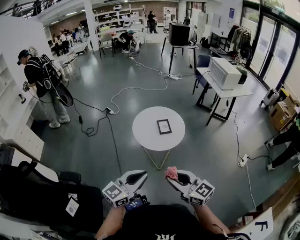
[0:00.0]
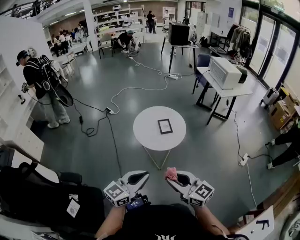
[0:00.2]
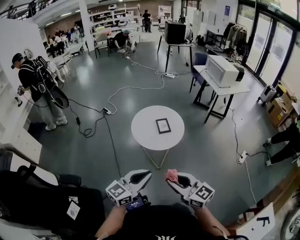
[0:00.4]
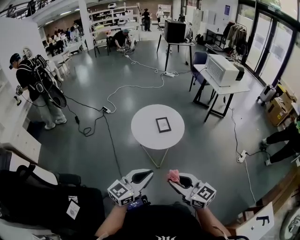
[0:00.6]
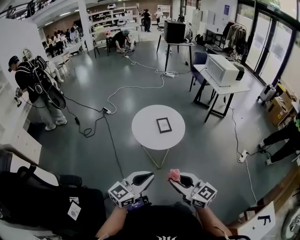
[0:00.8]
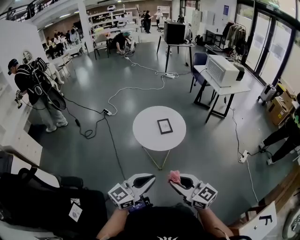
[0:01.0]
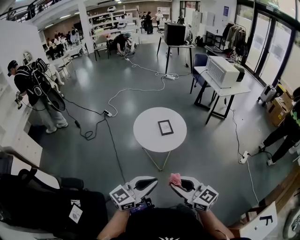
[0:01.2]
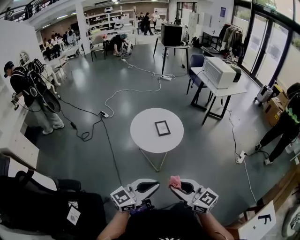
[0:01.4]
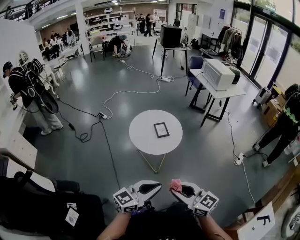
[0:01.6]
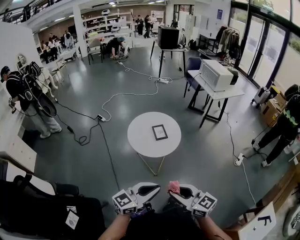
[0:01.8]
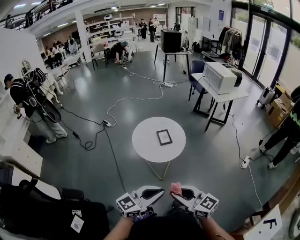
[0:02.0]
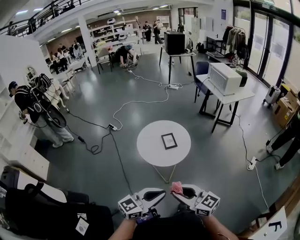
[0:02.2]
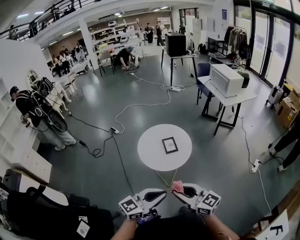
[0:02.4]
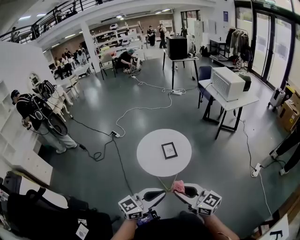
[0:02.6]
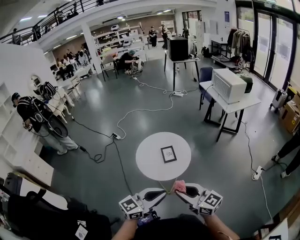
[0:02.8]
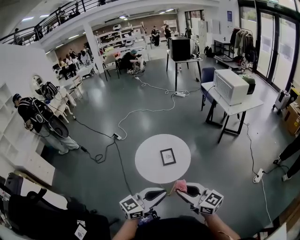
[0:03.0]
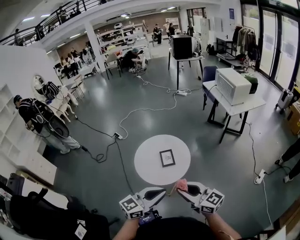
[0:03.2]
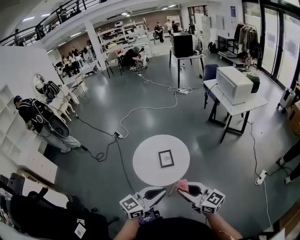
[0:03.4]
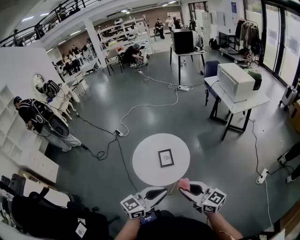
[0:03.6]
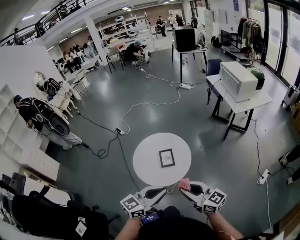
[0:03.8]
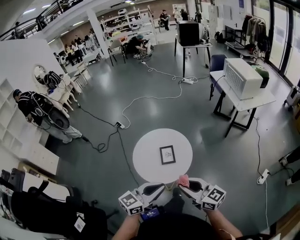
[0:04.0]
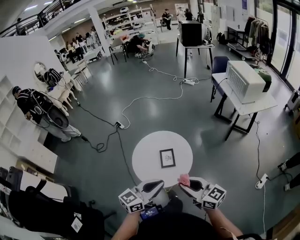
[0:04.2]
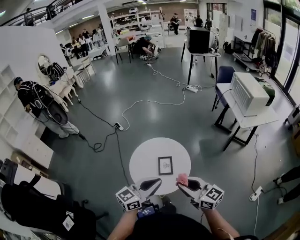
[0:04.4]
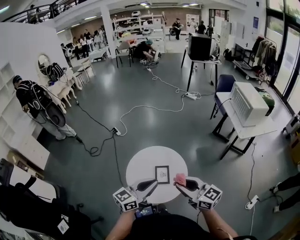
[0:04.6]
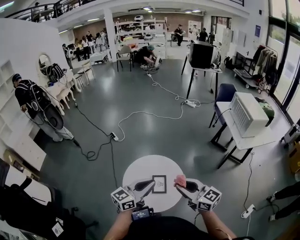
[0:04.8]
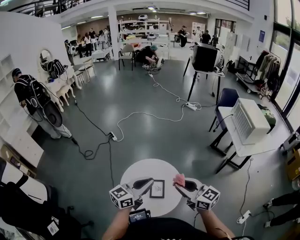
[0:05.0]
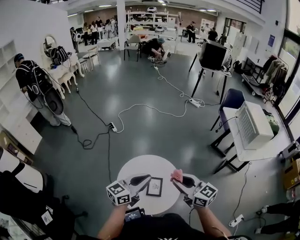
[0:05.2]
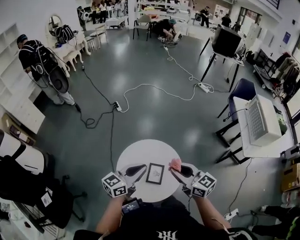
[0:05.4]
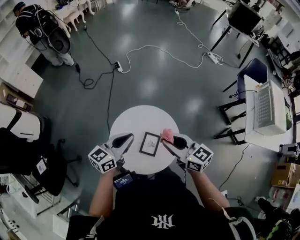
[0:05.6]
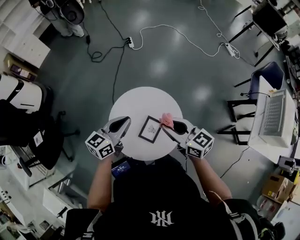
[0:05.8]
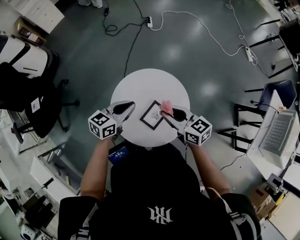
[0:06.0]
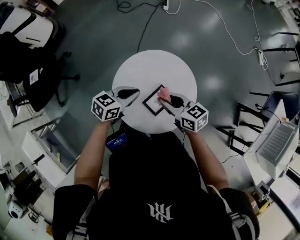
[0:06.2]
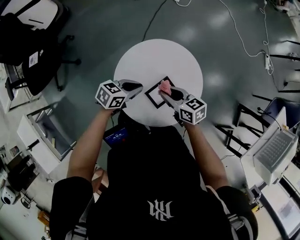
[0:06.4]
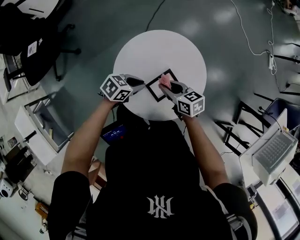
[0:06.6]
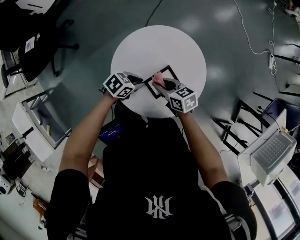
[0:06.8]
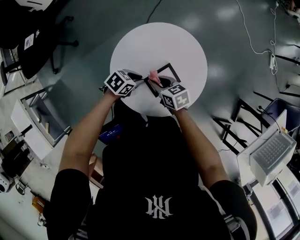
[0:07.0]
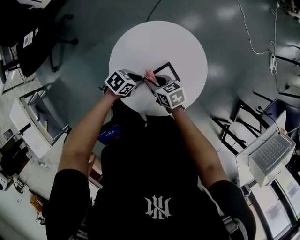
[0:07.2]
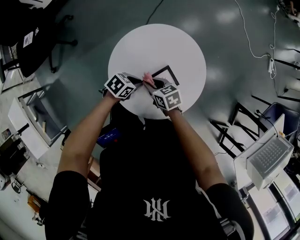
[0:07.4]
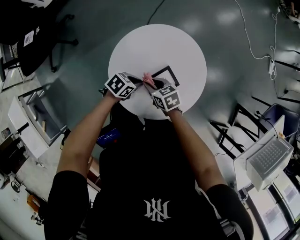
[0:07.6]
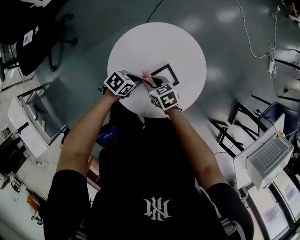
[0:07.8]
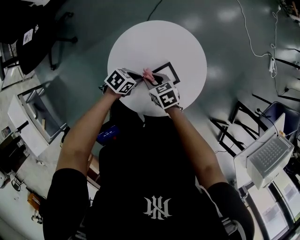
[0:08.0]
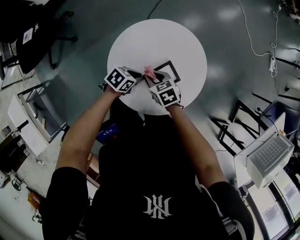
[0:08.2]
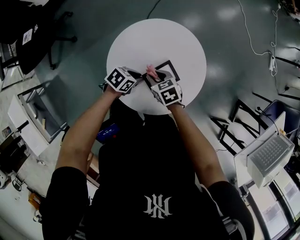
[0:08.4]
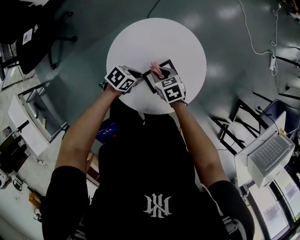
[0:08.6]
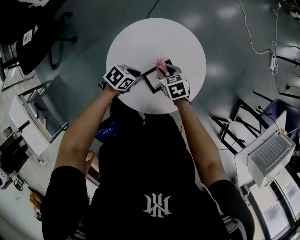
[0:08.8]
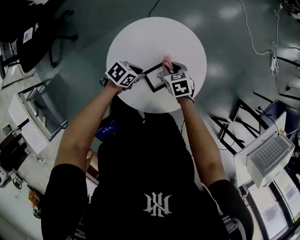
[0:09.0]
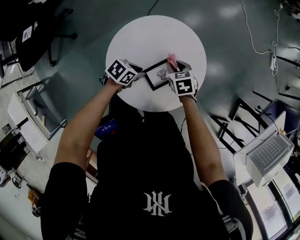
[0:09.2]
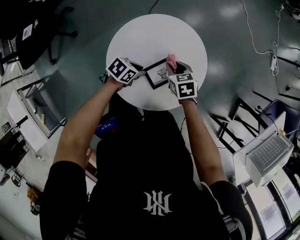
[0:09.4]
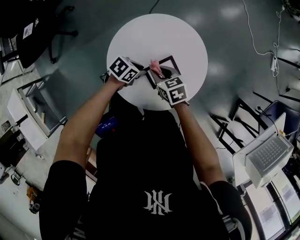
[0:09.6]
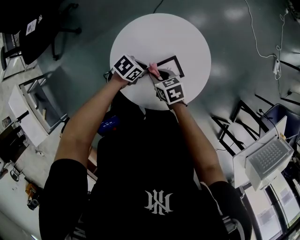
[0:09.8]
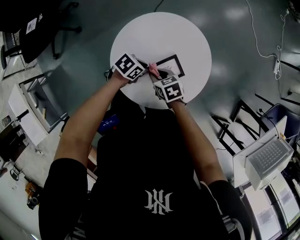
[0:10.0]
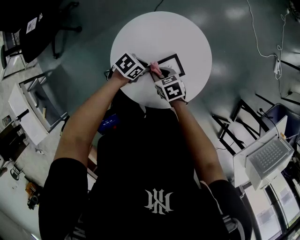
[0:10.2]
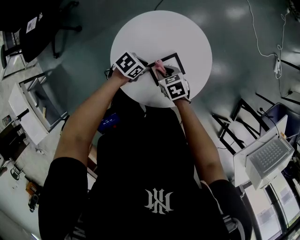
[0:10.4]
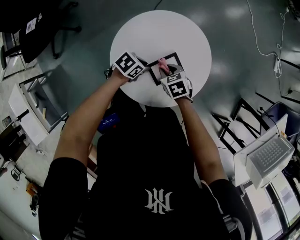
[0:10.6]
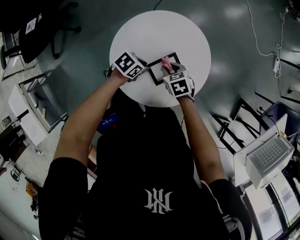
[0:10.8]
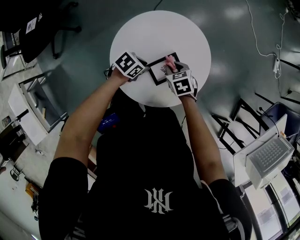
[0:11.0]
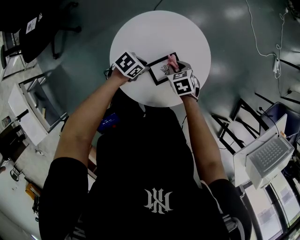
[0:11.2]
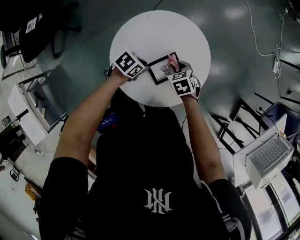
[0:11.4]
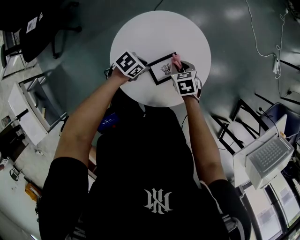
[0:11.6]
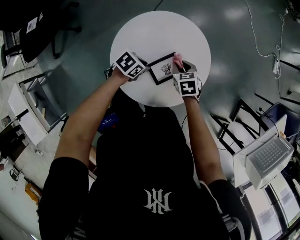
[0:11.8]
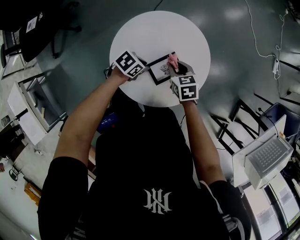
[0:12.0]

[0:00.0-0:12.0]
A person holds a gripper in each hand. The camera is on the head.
0.0 to 1.6 s: The grippers move only a little.
1.6 to 3.0 s: The two grippers go approximately 25 cm forward and to the right.
3.0 to 4.4 s: Both grippers move forward, some 25 cm.
4.4 to 6.0 s: The left gripper ends up some 35 cm from where it was, and changes its angle by approximately 50 degrees, while the right gripper changes place by roughly 40 cm, and changes its angle by about 50 degrees.
6.0 to 7.6 s: The grippers both shift downward by about 25 cm. The left gripper turns by approximately 30 degrees; the right gripper turns by approximately 30 degrees.
7.6 to 9.0 s: The right gripper shifts by roughly 10 cm, and swivels some 20 degrees.
9.0 to 10.4 s: The right gripper changes place by about 10 cm.
10.4 to 12.0 s: The right gripper moves about 5 cm.

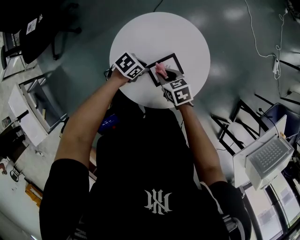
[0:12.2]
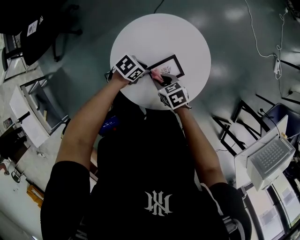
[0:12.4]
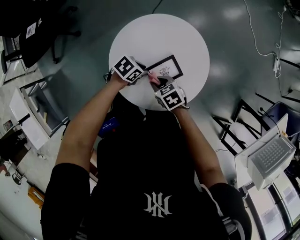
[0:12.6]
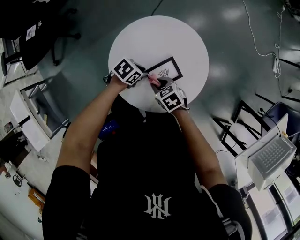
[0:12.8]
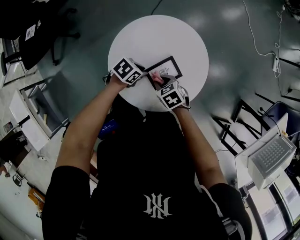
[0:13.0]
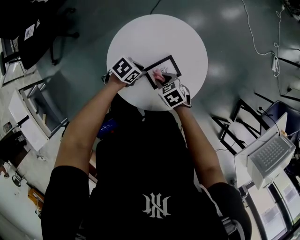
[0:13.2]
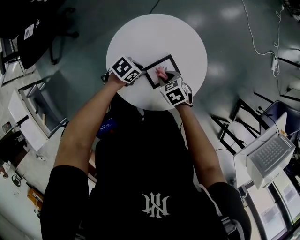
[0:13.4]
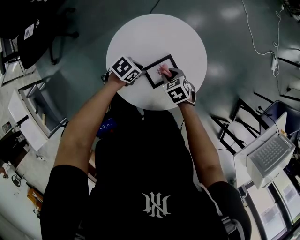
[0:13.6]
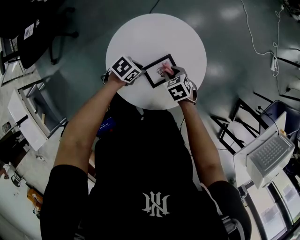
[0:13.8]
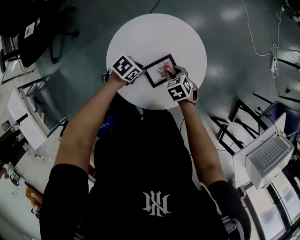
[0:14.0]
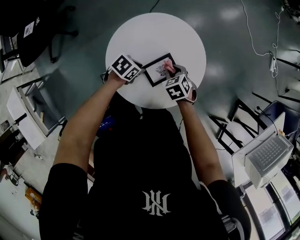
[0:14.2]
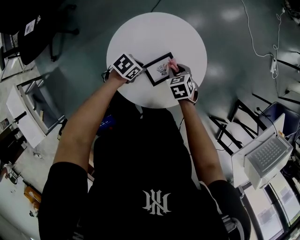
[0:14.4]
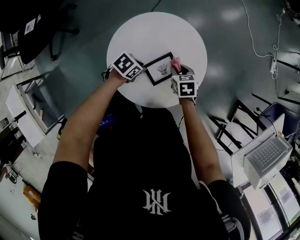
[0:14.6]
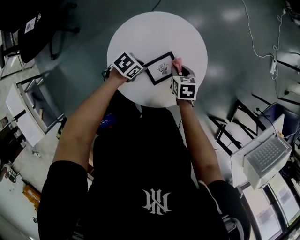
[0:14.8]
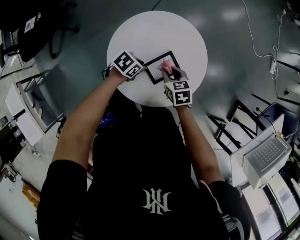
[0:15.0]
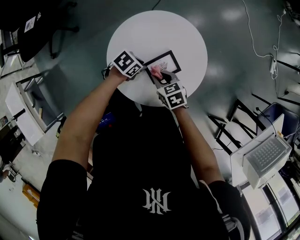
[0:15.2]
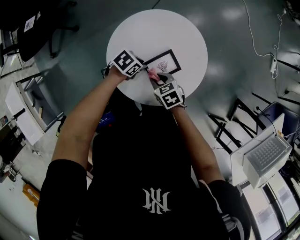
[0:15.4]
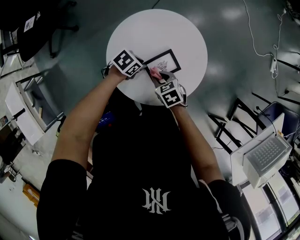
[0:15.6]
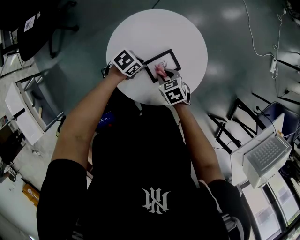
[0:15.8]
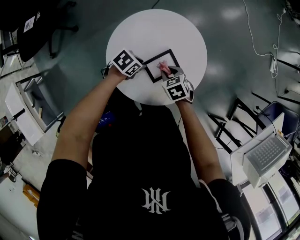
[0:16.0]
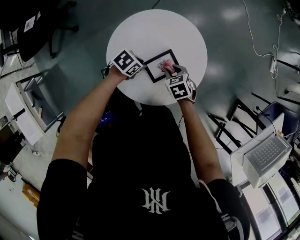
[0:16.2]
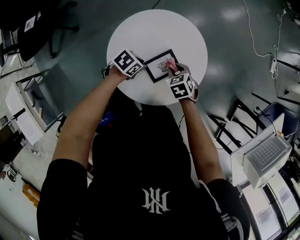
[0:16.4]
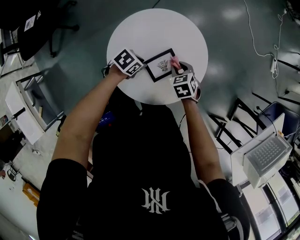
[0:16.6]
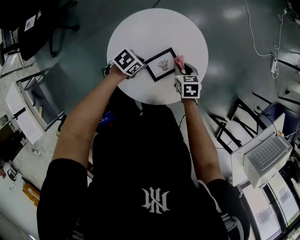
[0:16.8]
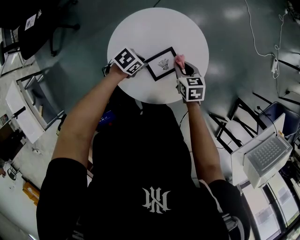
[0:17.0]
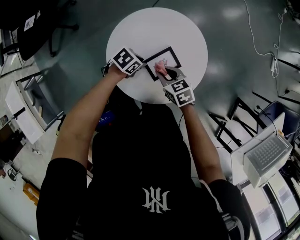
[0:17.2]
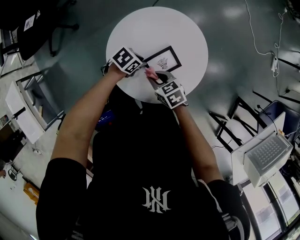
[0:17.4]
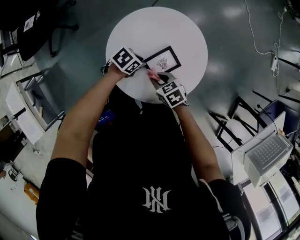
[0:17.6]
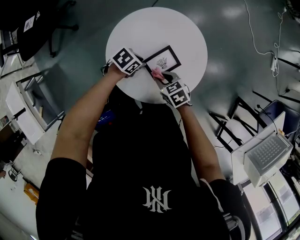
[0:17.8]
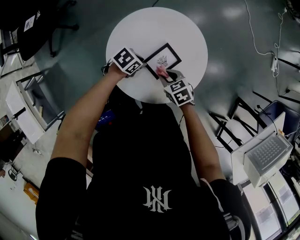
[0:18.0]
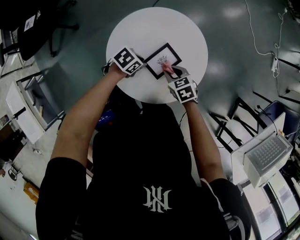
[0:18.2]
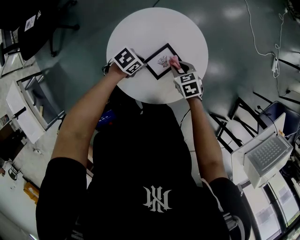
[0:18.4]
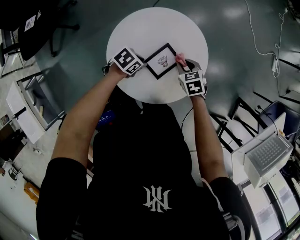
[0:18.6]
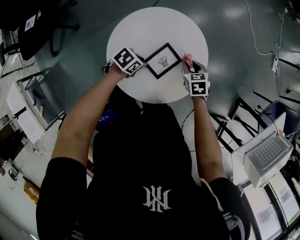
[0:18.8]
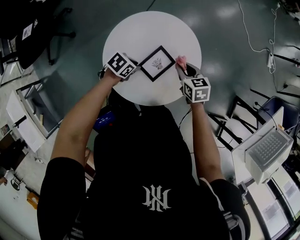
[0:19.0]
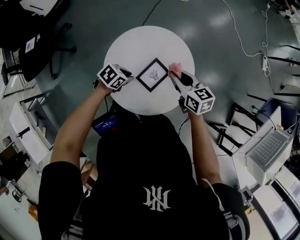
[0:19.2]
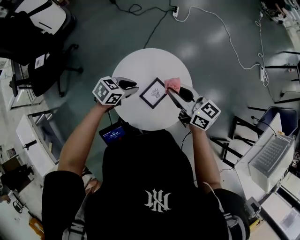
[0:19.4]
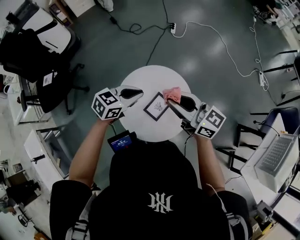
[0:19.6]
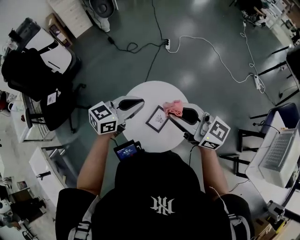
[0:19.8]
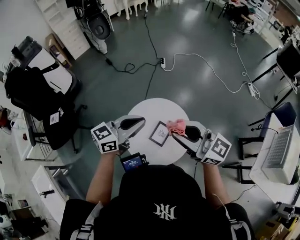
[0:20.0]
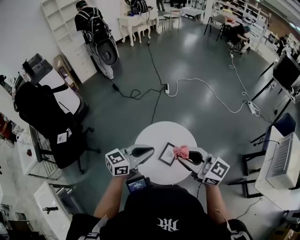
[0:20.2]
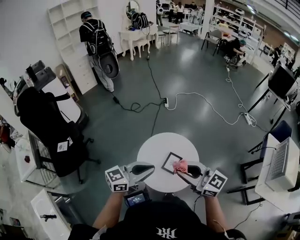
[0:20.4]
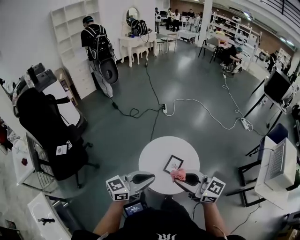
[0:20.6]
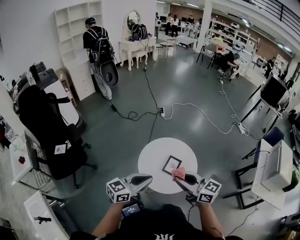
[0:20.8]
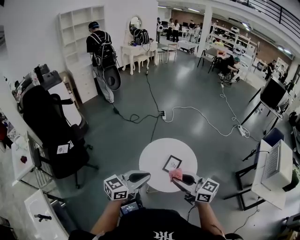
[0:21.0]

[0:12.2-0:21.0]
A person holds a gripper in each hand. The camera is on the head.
12.2 to 13.6 s: The right gripper changes place by approximately 5 cm.
13.6 to 15.2 s: The right gripper moves about 5 cm.
15.2 to 16.6 s: The right gripper moves roughly 10 cm, and rotates some 20 degrees.
16.6 to 18.0 s: The right gripper rotates about 20 degrees.
18.0 to 19.6 s: The grippers both shift upward by roughly 35 cm. The left gripper rotates some 40 degrees, while the right gripper angles its fingers upward, by some 60 degrees.
19.6 to 21.0 s: The left gripper heads backward, upward and to the left, covering approximately 35 cm, and swivels roughly 30 degrees; the right gripper moves backward, some 25 cm.

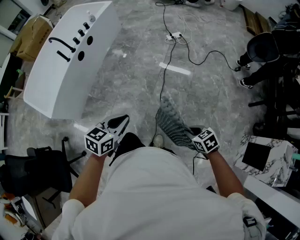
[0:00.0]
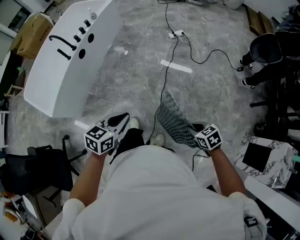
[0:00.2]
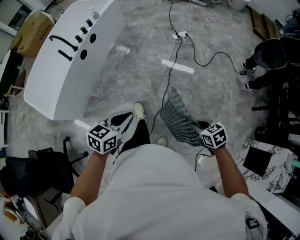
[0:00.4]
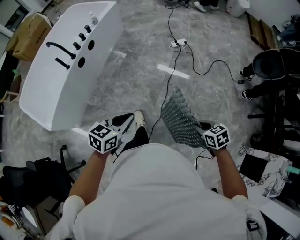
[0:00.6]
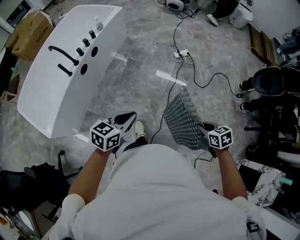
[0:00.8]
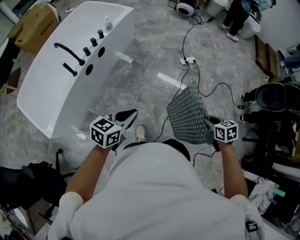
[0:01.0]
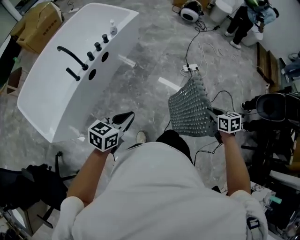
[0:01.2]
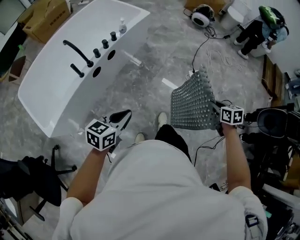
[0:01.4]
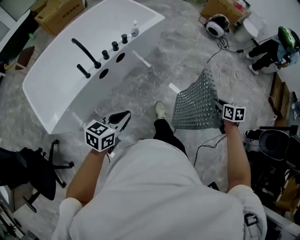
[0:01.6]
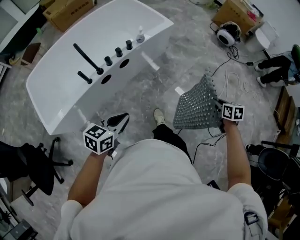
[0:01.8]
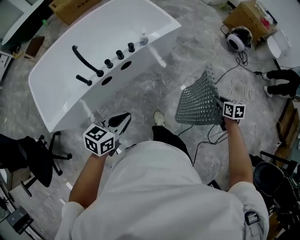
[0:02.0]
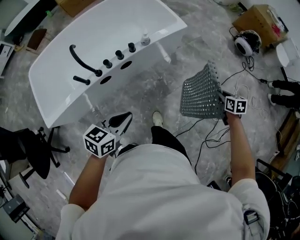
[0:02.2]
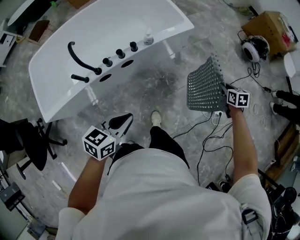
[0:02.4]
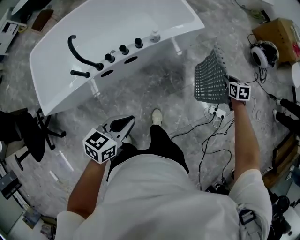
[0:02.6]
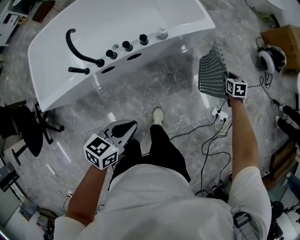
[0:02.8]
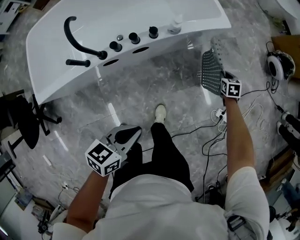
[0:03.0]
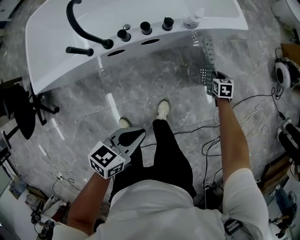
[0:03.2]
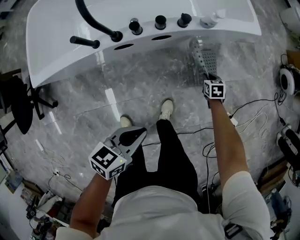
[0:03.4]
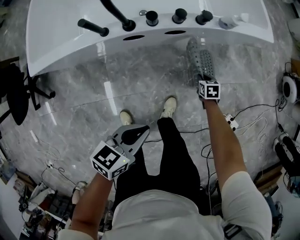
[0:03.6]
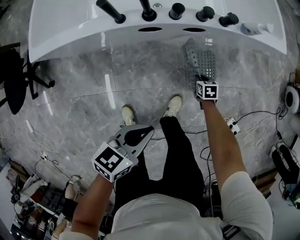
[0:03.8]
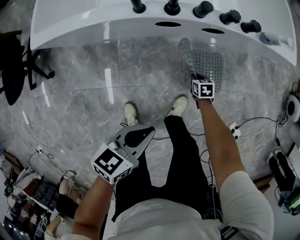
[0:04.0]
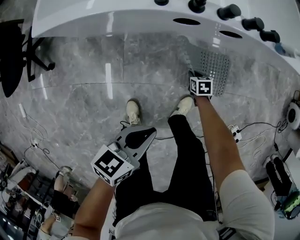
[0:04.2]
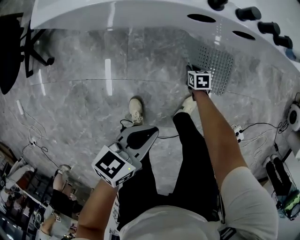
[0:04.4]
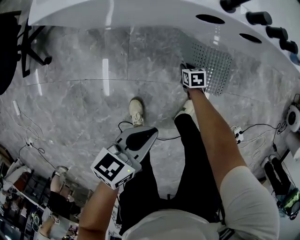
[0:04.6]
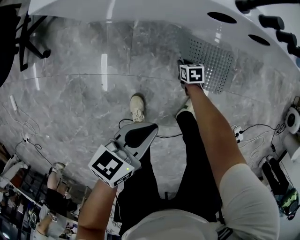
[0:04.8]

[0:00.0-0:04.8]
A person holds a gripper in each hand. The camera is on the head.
0.0 to 1.6 s: The pair of grippers is taken forward, about 60 cm. The left gripper rotates approximately 20 degrees.
1.6 to 3.2 s: The right gripper travels forward, downward and to the left by about 60 cm, and swivels roughly 40 degrees; the left gripper moves forward and downward, some 25 cm, and rotates approximately 30 degrees.
3.2 to 4.8 s: The left gripper changes place by some 35 cm, and rotates approximately 30 degrees. The right gripper moves some 60 cm, and rotates approximately 30 degrees.
